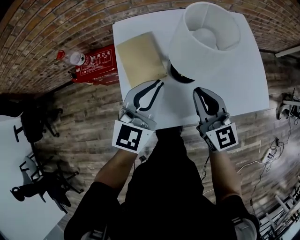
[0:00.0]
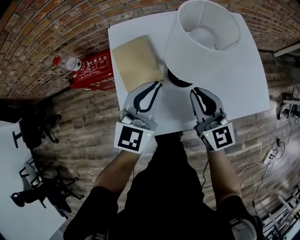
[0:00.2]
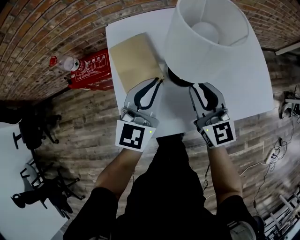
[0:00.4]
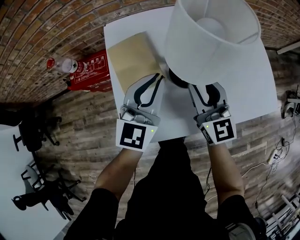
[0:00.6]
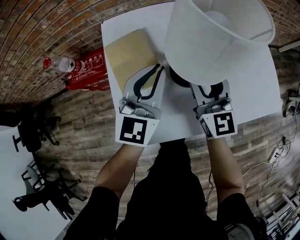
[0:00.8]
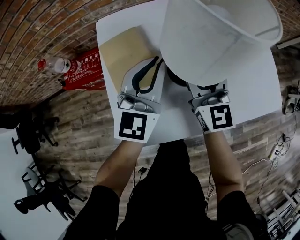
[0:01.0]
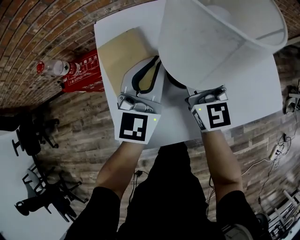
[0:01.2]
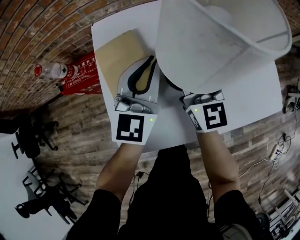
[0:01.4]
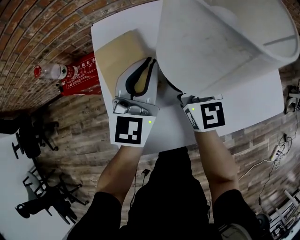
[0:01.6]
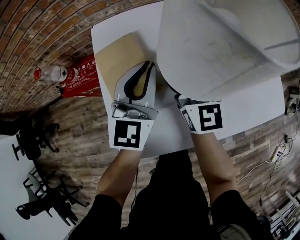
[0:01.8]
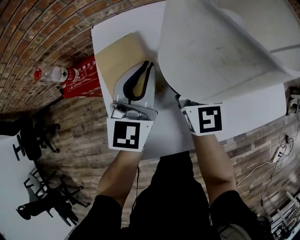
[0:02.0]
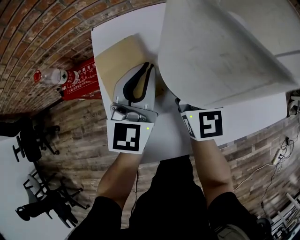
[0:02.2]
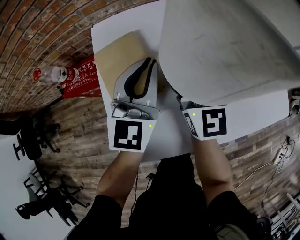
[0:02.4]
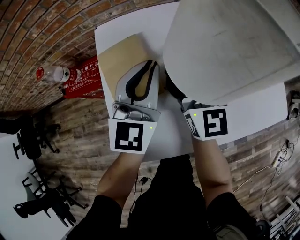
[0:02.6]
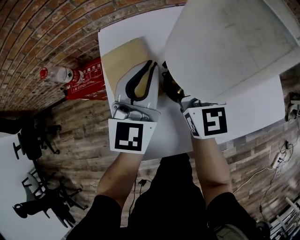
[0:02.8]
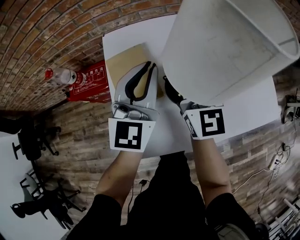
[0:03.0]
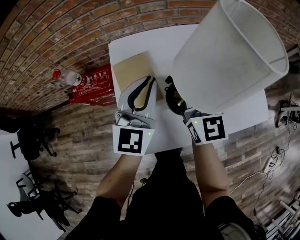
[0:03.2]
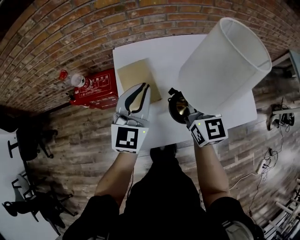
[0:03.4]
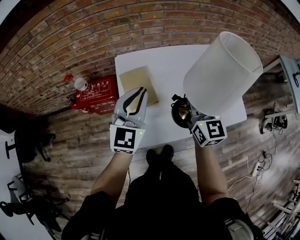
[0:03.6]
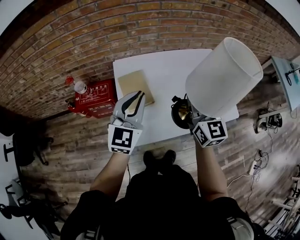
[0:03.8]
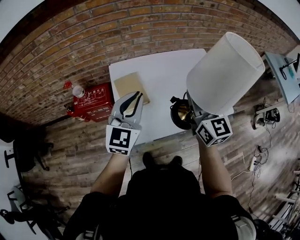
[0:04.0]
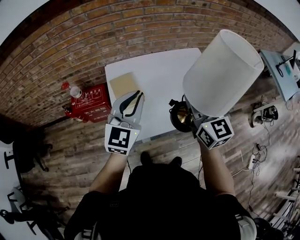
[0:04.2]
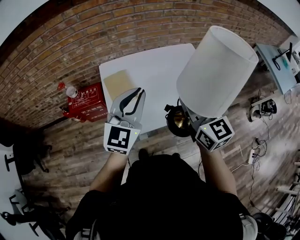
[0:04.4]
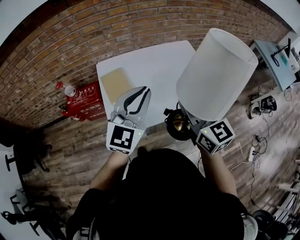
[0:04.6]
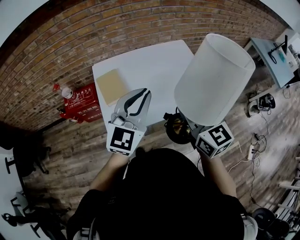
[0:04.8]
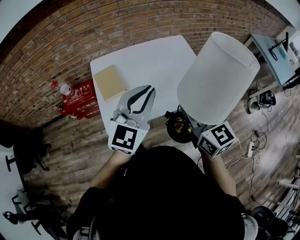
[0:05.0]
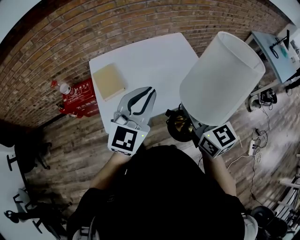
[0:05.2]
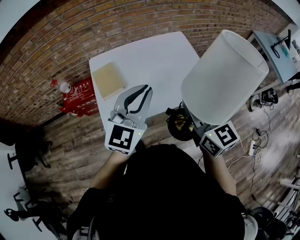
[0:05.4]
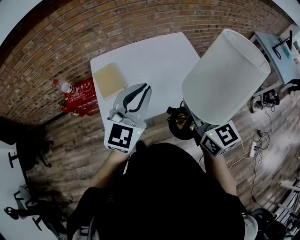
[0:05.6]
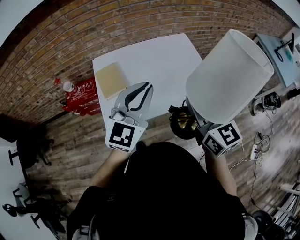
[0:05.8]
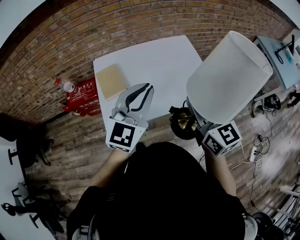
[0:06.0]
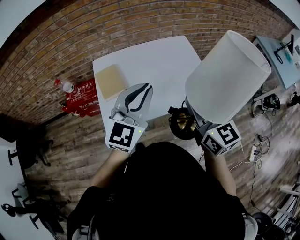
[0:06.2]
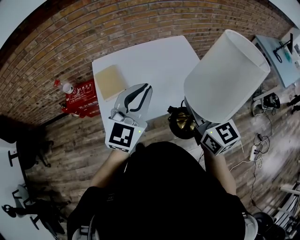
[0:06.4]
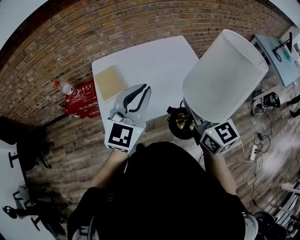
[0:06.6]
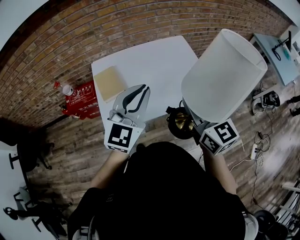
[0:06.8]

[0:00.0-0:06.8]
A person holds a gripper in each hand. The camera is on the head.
0:00.0 to 0:01.4: The right gripper is displaced forward by approximately 10 cm, and opens its fingers; the left gripper goes approximately 10 cm forward and downward.
0:01.4 to 0:02.8: The right gripper closes its fingers.
0:02.8 to 0:04.0: The grippers both shift upward and backward by some 25 cm.
0:04.0 to 0:05.4: Both grippers move to the right and backward, roughly 20 cm.
0:05.4 to 0:06.8: The grippers move only a little.

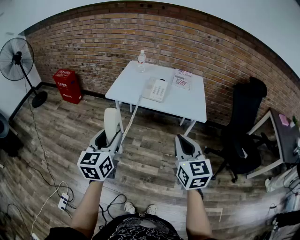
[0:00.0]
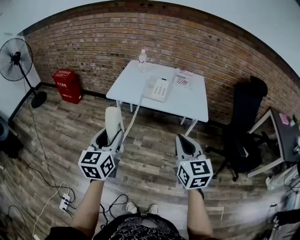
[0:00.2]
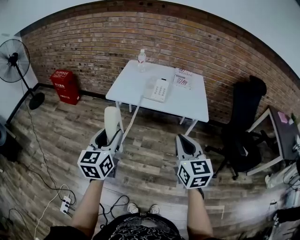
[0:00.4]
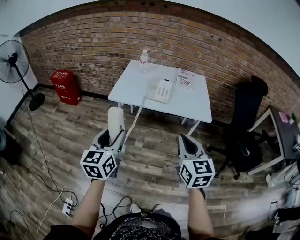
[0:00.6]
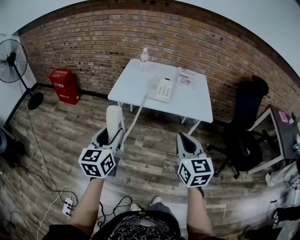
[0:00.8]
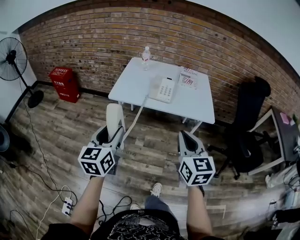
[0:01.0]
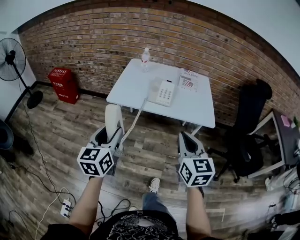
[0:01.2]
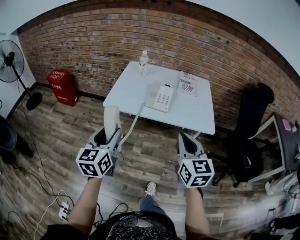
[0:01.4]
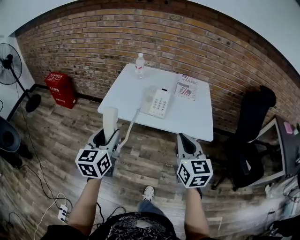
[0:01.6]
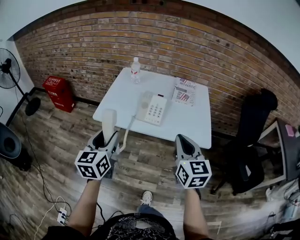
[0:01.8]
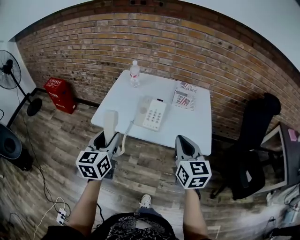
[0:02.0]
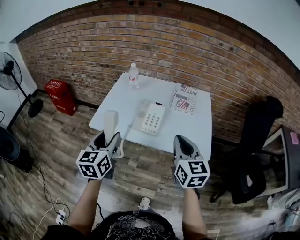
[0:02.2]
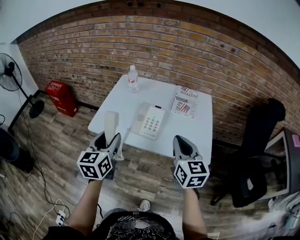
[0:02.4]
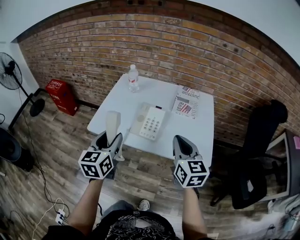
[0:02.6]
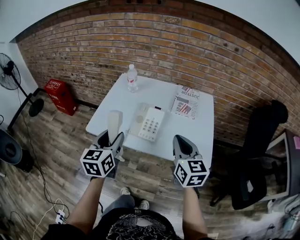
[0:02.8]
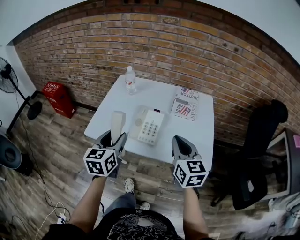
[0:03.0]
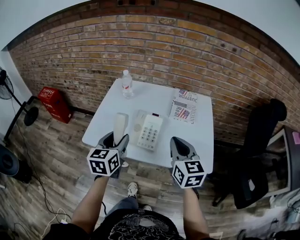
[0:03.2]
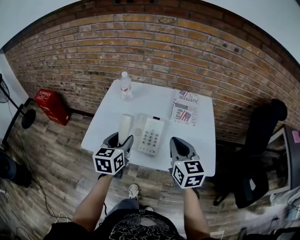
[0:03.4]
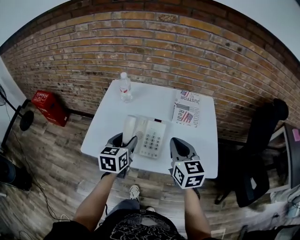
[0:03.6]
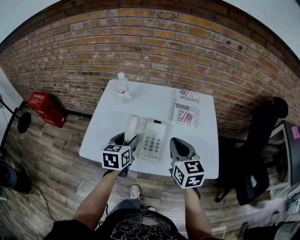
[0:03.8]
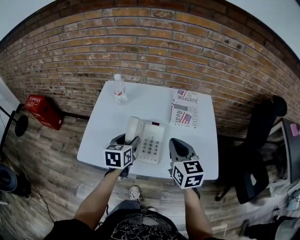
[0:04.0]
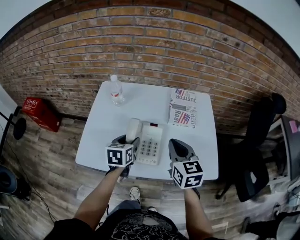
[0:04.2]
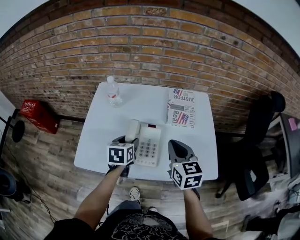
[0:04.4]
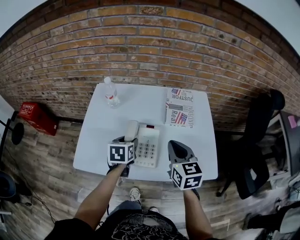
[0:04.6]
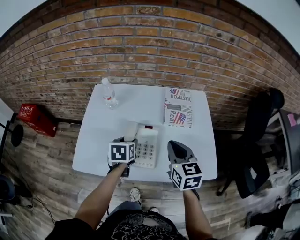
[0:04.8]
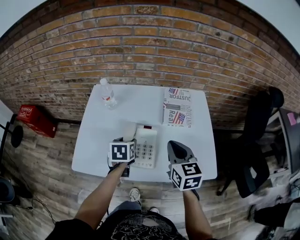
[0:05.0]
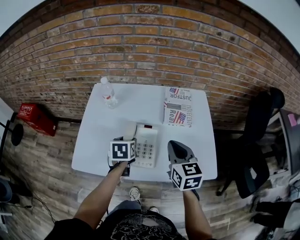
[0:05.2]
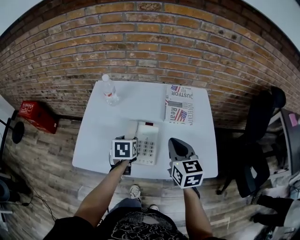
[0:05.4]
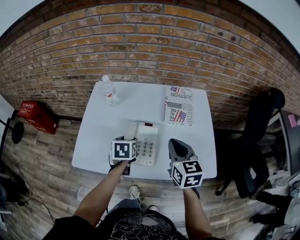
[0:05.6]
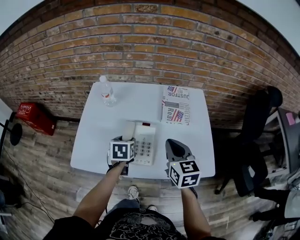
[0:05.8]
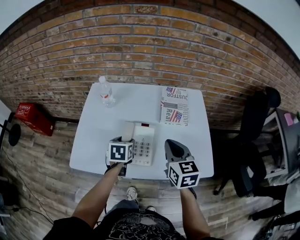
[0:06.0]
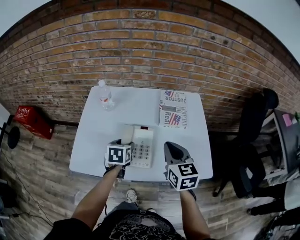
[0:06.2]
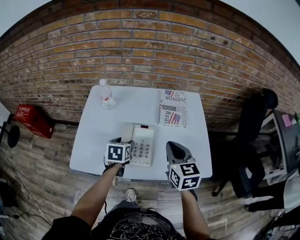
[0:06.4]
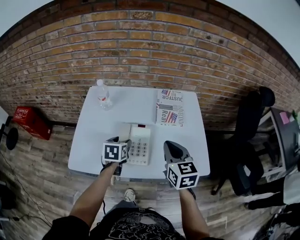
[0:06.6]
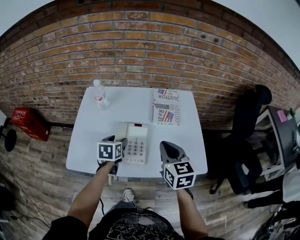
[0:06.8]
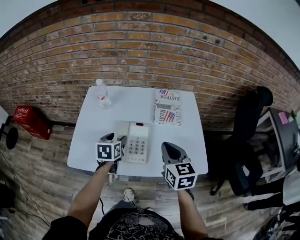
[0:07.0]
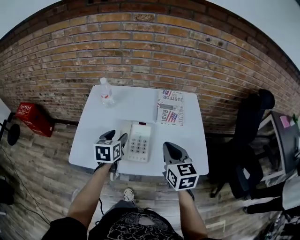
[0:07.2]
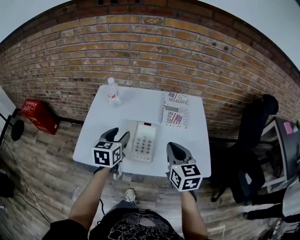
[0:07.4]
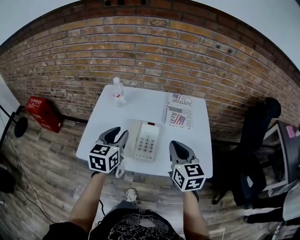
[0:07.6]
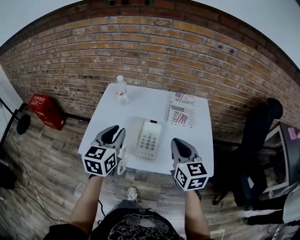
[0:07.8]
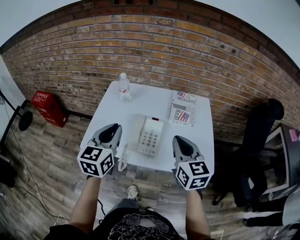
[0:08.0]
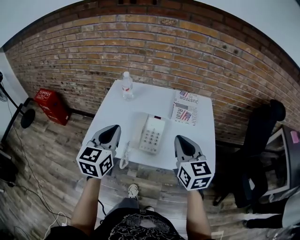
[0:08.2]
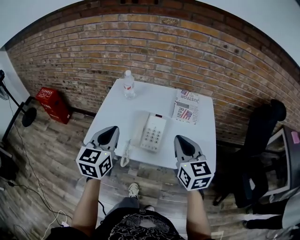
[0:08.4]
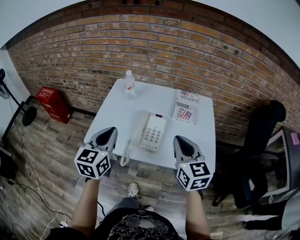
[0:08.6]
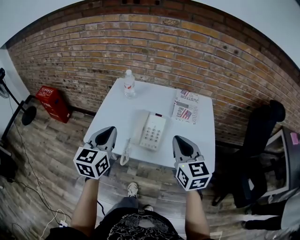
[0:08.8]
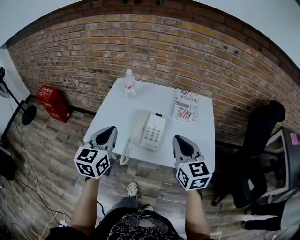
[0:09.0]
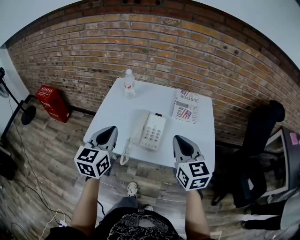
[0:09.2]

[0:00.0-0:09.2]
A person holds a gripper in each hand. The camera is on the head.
0:00.0 to 0:01.6: Both grippers travel together forward, some 20 cm.
0:01.6 to 0:03.0: The right gripper moves forward, about 20 cm. Meanwhile the left gripper is displaced forward and to the right by some 20 cm.
0:03.0 to 0:04.6: The left gripper travels forward and downward by approximately 25 cm, and changes its angle by about 30 degrees, while the right gripper heads forward and downward, covering some 15 cm.
0:04.6 to 0:06.2: The grippers stay close to where they were, moving slightly.
0:06.2 to 0:07.6: The right gripper ends up some 5 cm from where it was; the left gripper goes roughly 15 cm upward and backward, and turns by about 30 degrees.
0:07.6 to 0:09.2: The left gripper is displaced backward by about 10 cm, and closes its fingers. The right gripper shifts about 5 cm backward.

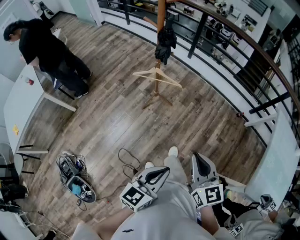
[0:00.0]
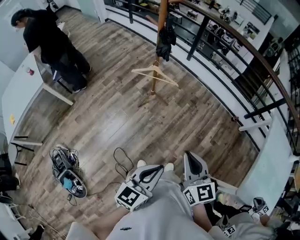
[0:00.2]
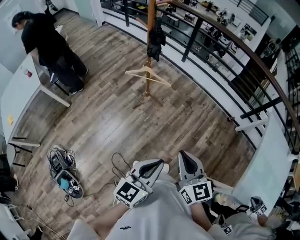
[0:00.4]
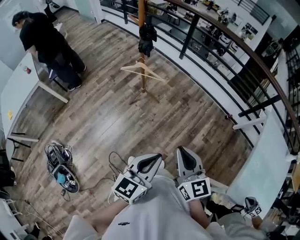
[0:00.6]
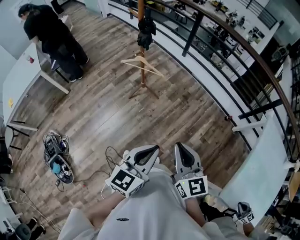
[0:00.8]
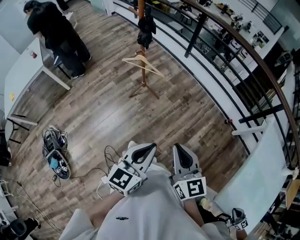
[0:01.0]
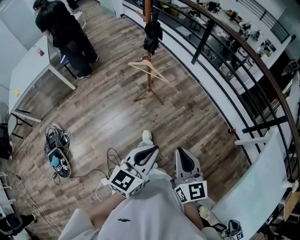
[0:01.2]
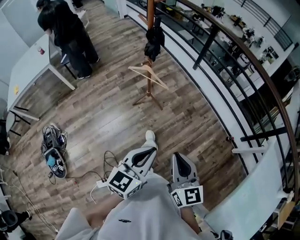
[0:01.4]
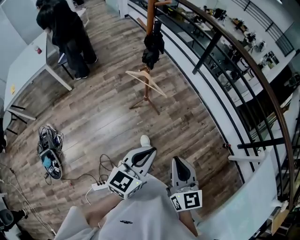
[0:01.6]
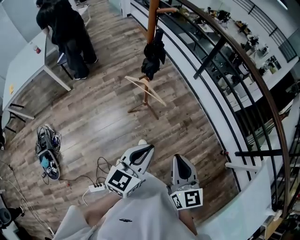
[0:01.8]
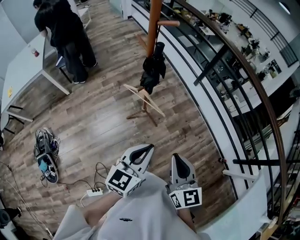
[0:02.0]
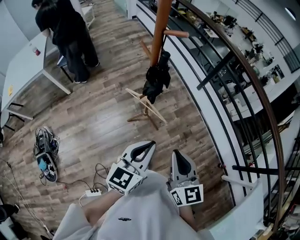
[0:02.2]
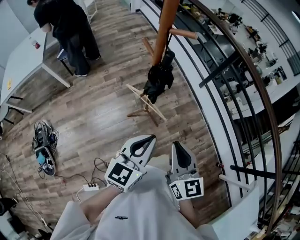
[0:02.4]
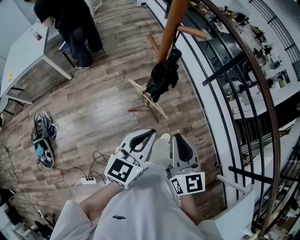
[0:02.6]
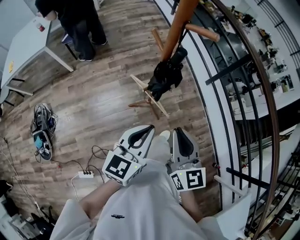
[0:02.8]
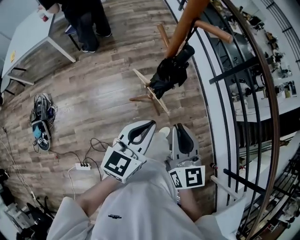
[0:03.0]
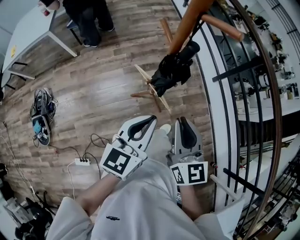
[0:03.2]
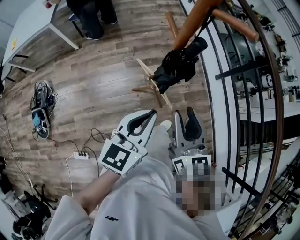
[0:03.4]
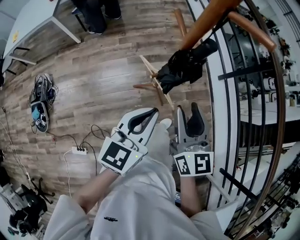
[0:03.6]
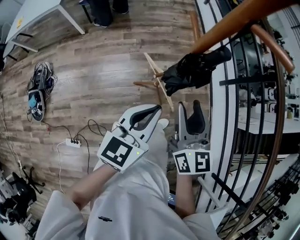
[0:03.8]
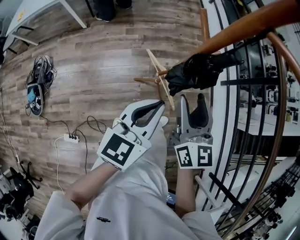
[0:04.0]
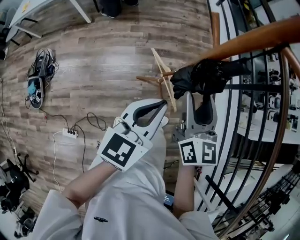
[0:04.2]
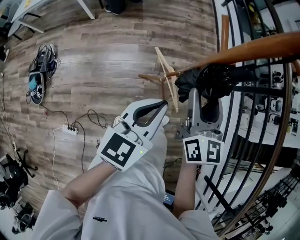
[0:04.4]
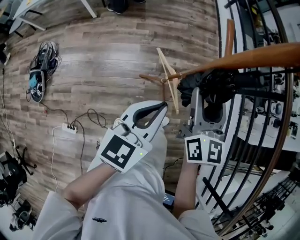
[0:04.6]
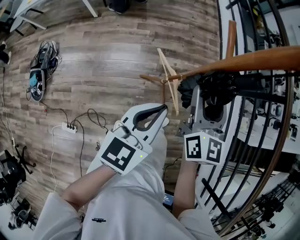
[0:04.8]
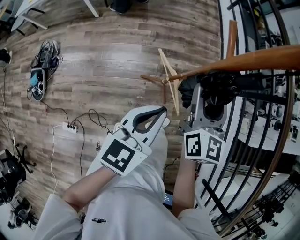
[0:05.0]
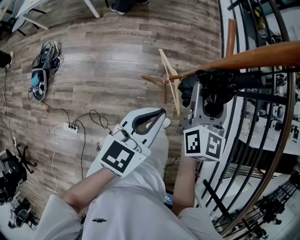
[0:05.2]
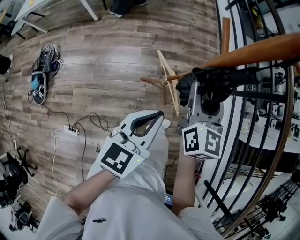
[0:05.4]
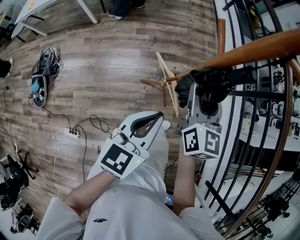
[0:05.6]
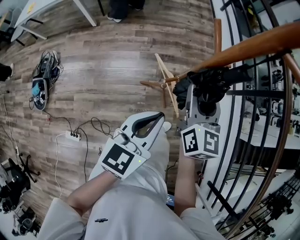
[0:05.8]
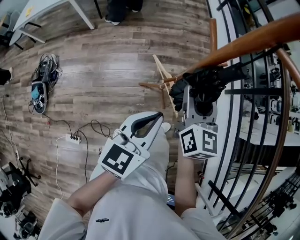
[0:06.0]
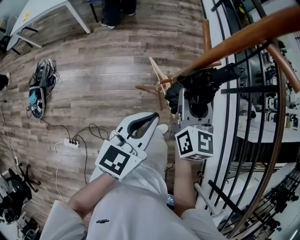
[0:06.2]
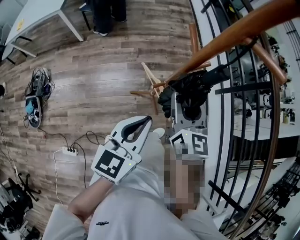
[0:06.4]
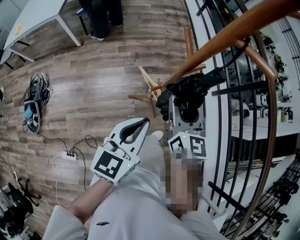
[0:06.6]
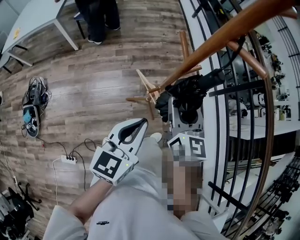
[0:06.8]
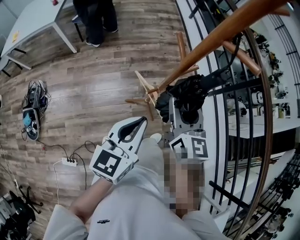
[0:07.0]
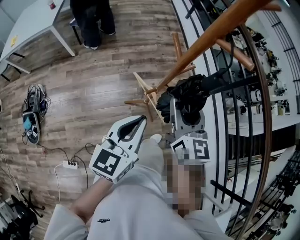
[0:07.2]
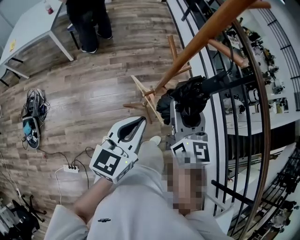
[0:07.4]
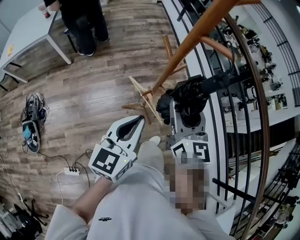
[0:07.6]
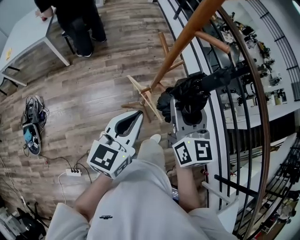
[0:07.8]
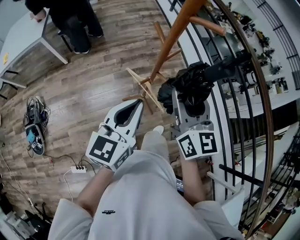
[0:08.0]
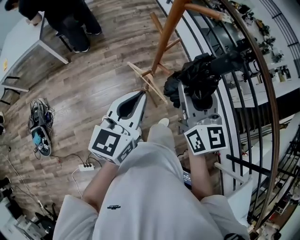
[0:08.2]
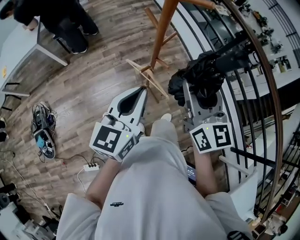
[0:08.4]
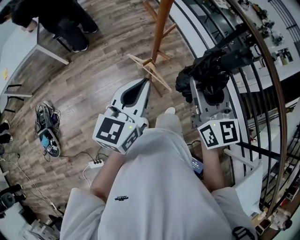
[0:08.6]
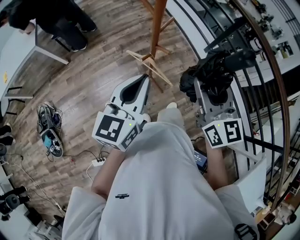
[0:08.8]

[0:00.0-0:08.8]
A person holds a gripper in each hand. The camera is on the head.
0:00.0 to 0:01.4: The left gripper heads to the right and forward, covering approximately 20 cm, and rotates roughly 20 degrees. The right gripper is displaced to the right by roughly 15 cm.
0:01.4 to 0:03.0: The two grippers travel together, forward, some 40 cm. The left gripper swivels some 20 degrees.
0:03.0 to 0:04.4: The left gripper heads forward and downward, covering approximately 10 cm, while the right gripper travels forward and downward by about 20 cm, and opens its fingers.
0:04.4 to 0:05.8: The grippers make only small movements.
0:05.8 to 0:07.4: The left gripper goes approximately 5 cm upward; the right gripper travels upward and backward by roughly 15 cm.
0:07.4 to 0:08.8: The right gripper travels backward and to the right by some 15 cm.
